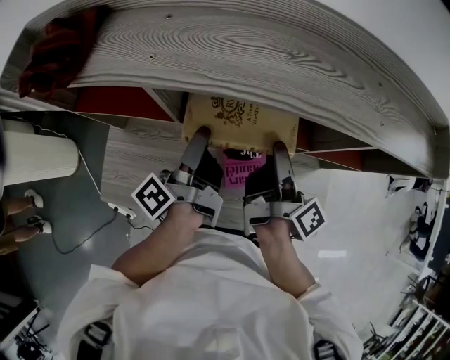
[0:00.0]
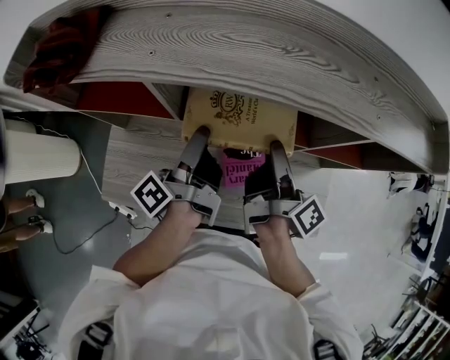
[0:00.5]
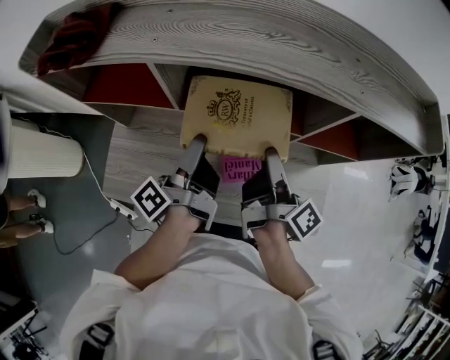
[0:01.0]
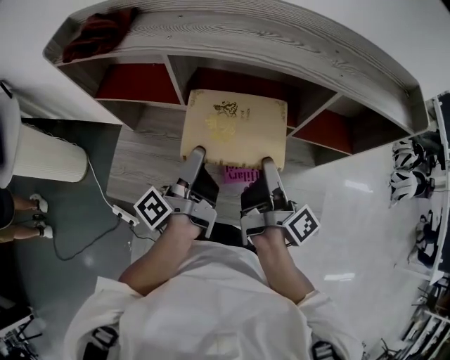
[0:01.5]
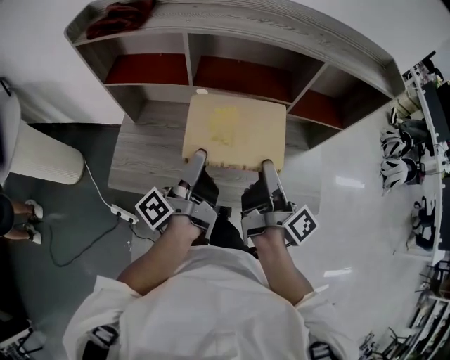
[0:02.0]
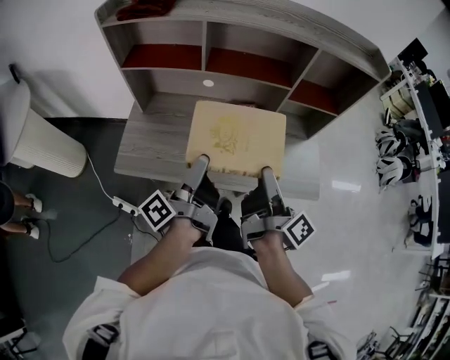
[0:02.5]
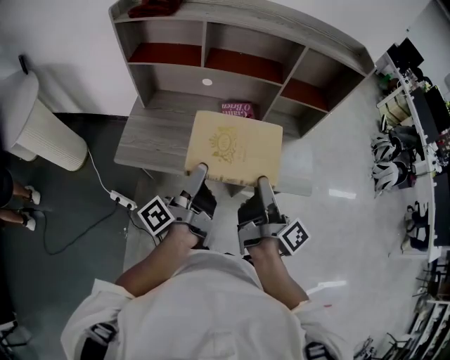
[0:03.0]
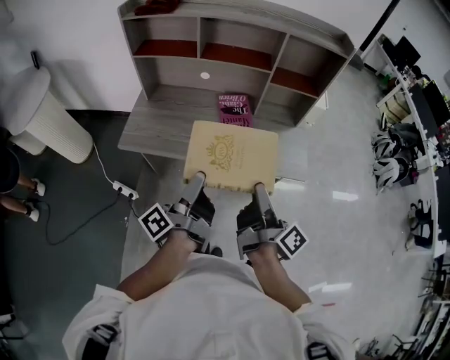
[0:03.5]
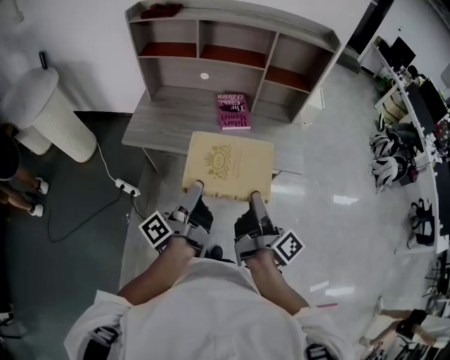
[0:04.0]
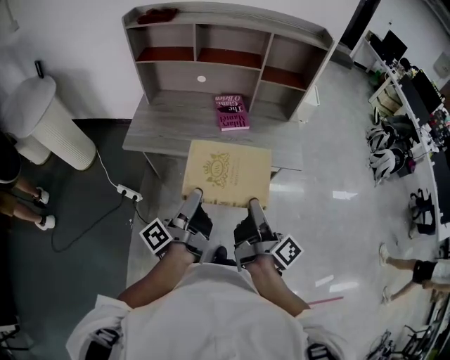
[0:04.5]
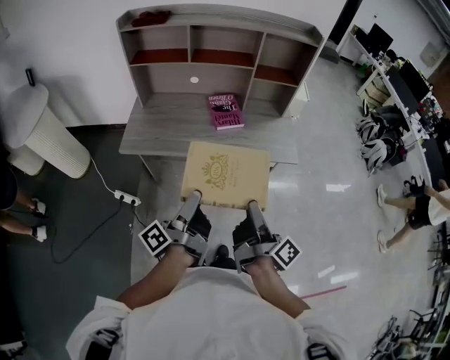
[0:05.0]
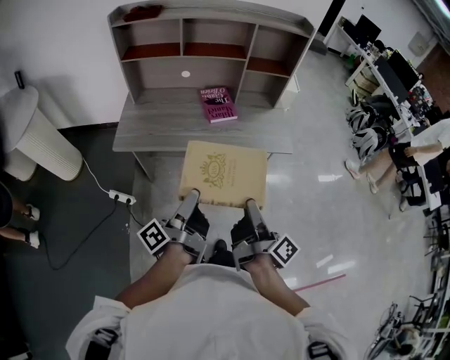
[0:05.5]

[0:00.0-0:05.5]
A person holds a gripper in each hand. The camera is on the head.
0:00.0 to 0:02.0: Both grippers move backward, about 20 cm.
0:02.0 to 0:03.5: The grippers both shift backward by about 30 cm.
0:03.5 to 0:05.5: The two grippers go some 15 cm backward.

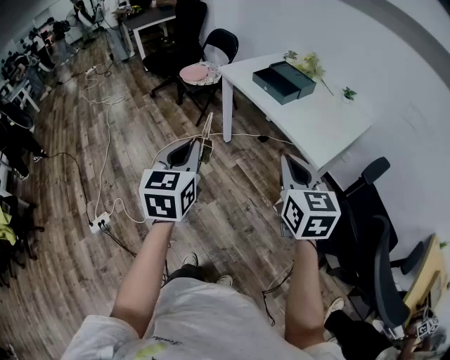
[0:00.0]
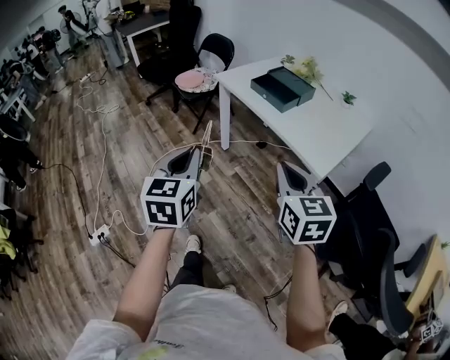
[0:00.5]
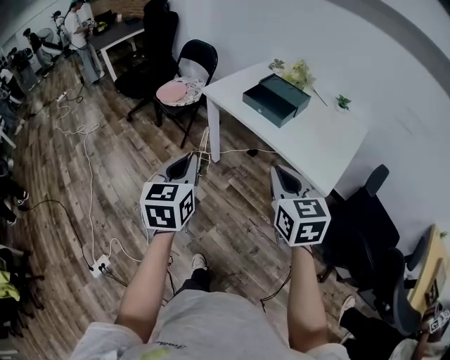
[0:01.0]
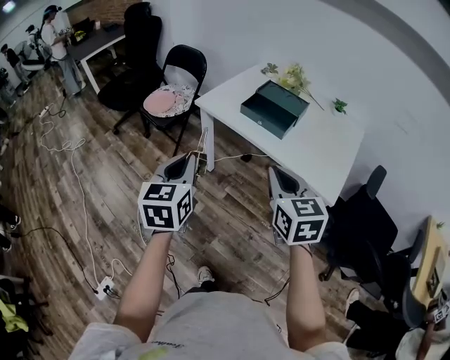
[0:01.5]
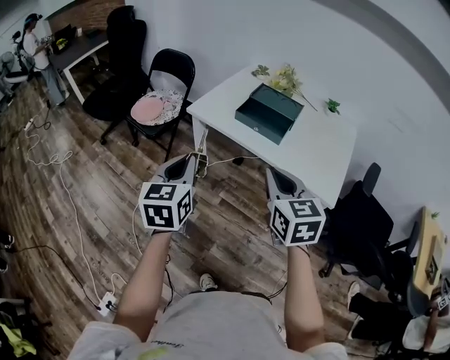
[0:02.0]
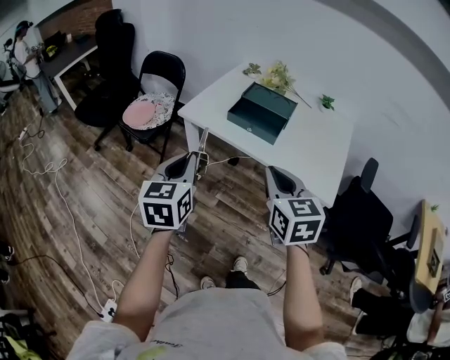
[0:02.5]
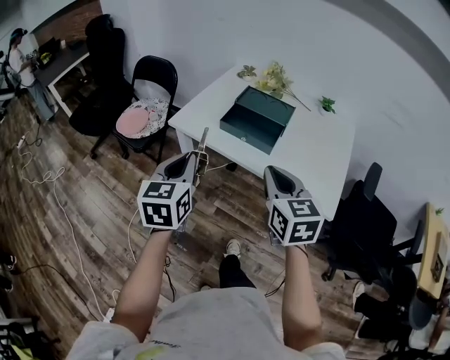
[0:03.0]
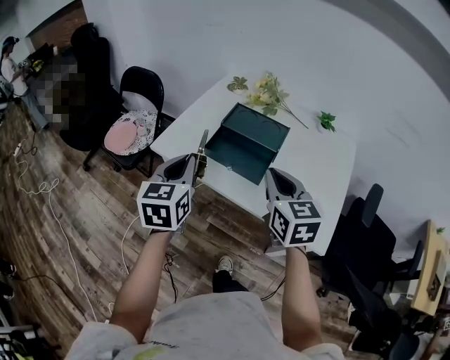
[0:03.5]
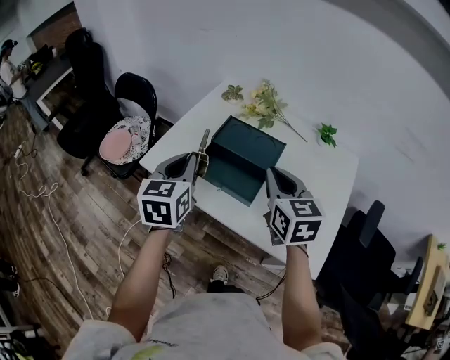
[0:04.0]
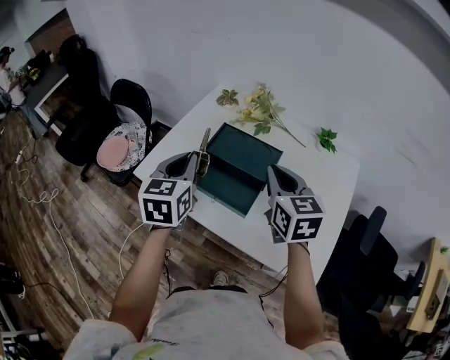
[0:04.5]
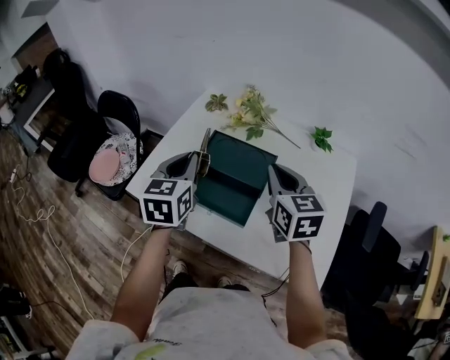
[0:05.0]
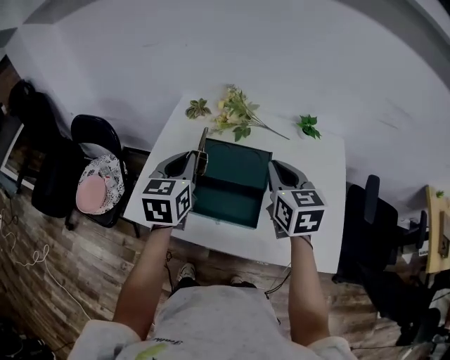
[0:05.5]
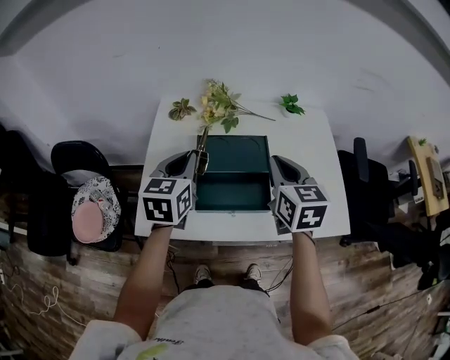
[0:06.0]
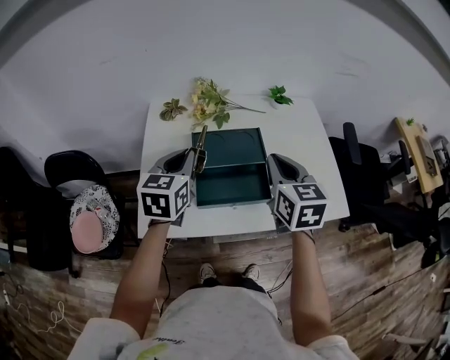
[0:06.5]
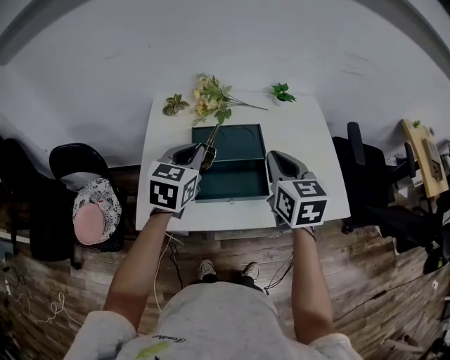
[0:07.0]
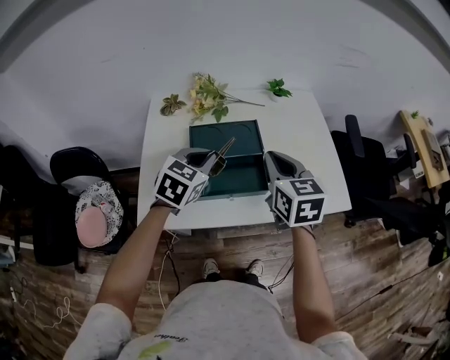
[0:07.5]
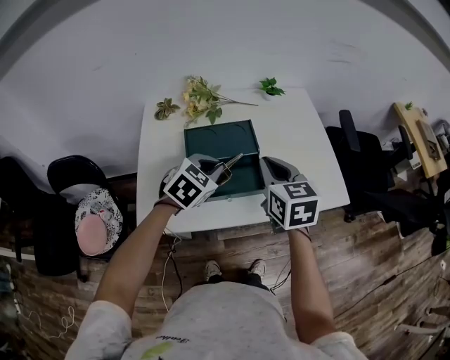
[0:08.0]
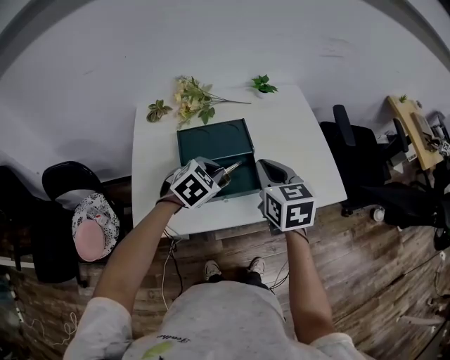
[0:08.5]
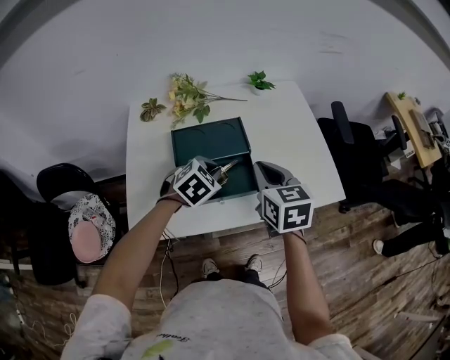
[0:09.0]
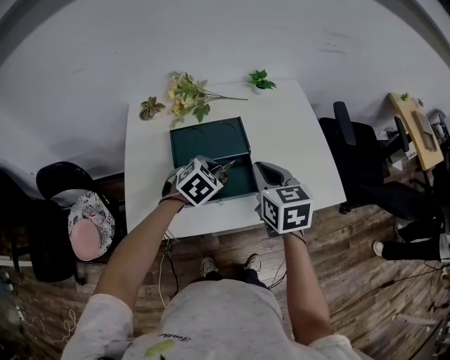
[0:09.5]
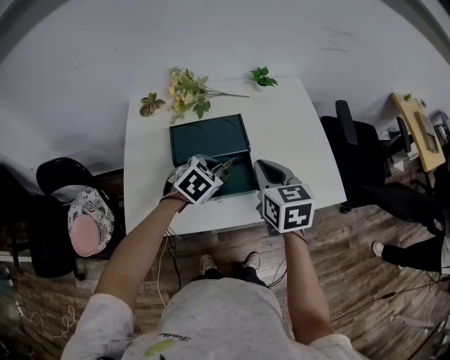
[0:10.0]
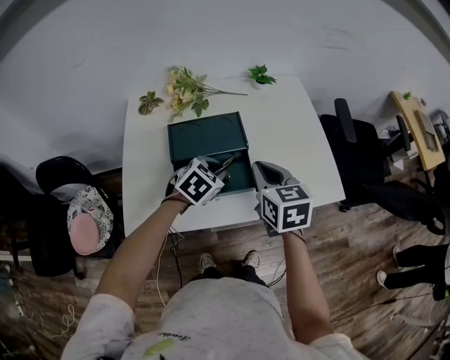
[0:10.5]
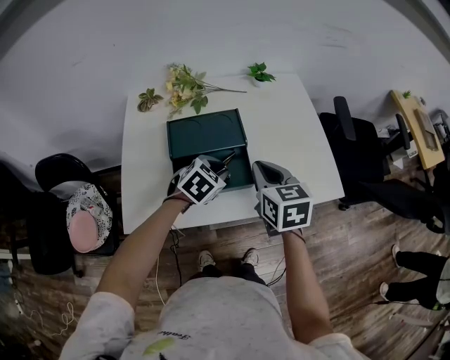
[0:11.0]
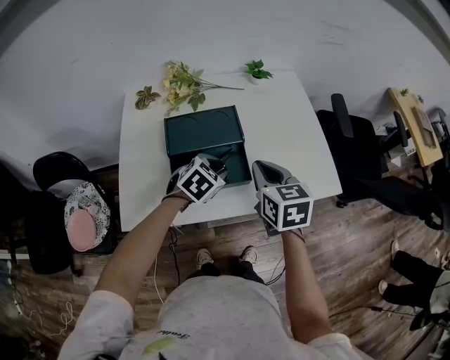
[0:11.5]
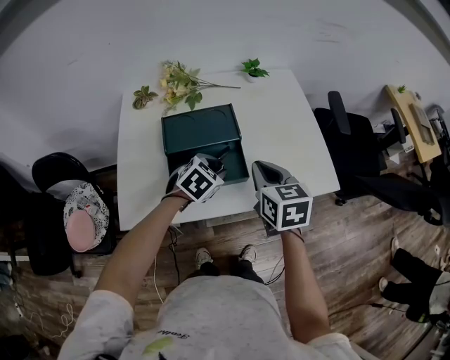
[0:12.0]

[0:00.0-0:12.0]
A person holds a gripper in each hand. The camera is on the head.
0:00.0 to 0:02.0: The right gripper shifts about 30 cm forward and to the left. The left gripper goes approximately 30 cm forward, and changes its angle by approximately 20 degrees.
0:02.0 to 0:04.0: The two grippers go approximately 35 cm forward and to the right.
0:04.0 to 0:06.0: The left gripper shifts by about 15 cm, and turns by about 30 degrees, while the right gripper rotates roughly 30 degrees.
0:06.0 to 0:08.0: The left gripper is displaced to the right and downward by some 15 cm, and rotates about 50 degrees, while the right gripper goes about 5 cm backward.
0:08.0 to 0:10.0: The left gripper shifts about 5 cm downward.
0:10.0 to 0:12.0: The left gripper opens.

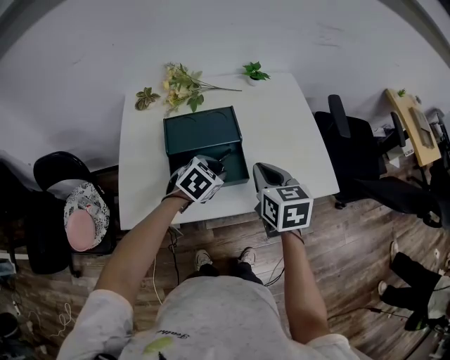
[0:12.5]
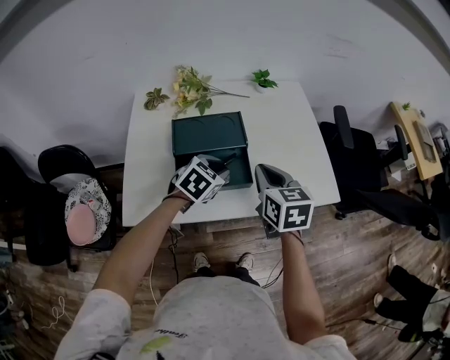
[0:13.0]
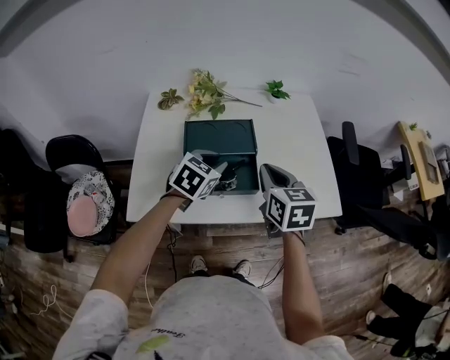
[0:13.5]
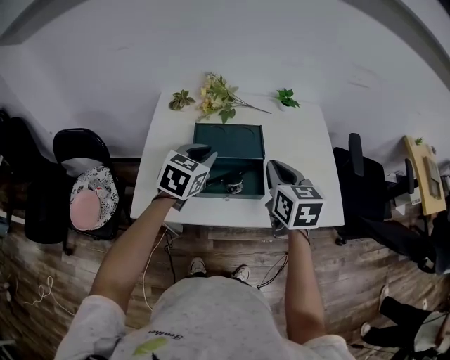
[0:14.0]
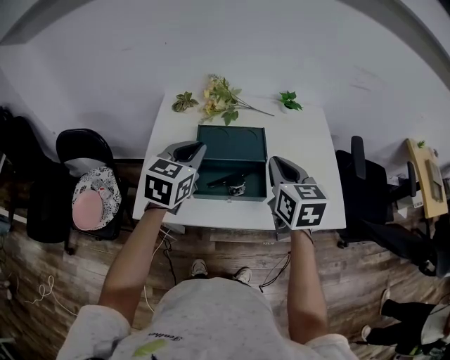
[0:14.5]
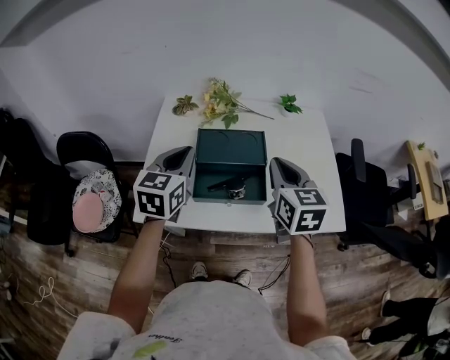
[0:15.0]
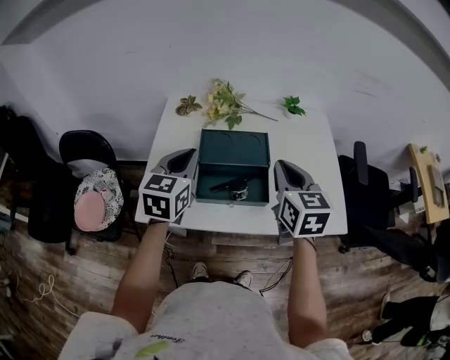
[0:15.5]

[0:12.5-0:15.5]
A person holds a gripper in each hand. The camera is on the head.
0:12.5 to 0:14.0: The left gripper shifts approximately 15 cm upward and to the left, and rotates approximately 30 degrees; the right gripper moves upward, some 5 cm.
0:14.0 to 0:15.5: The left gripper heads to the left and upward, covering some 10 cm, and swivels roughly 20 degrees.

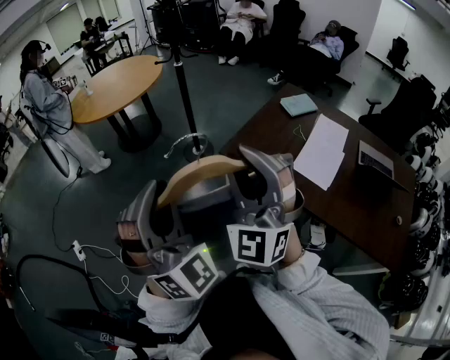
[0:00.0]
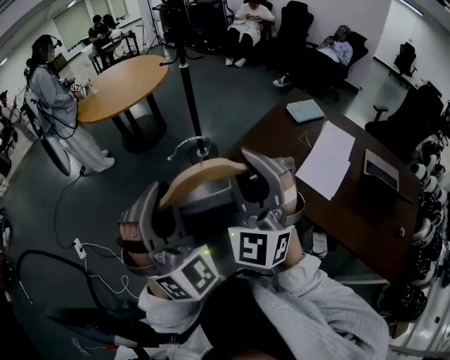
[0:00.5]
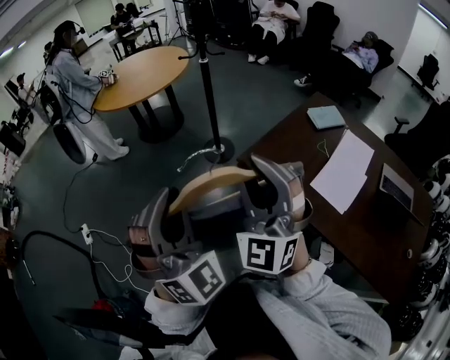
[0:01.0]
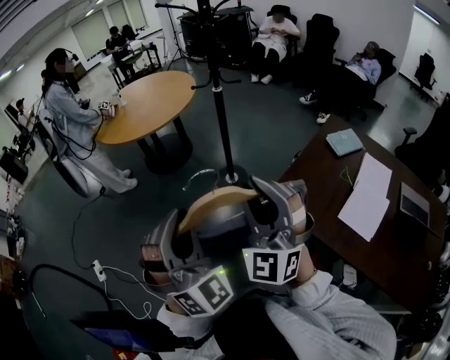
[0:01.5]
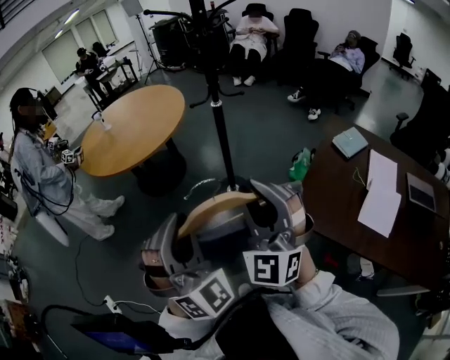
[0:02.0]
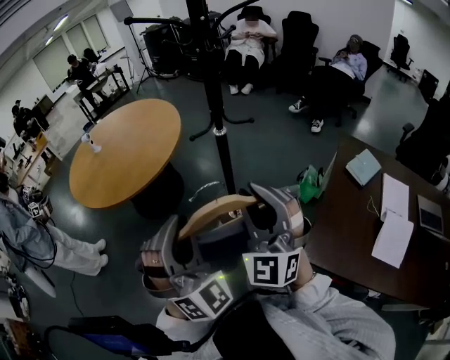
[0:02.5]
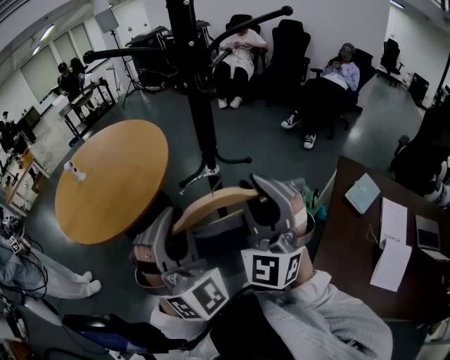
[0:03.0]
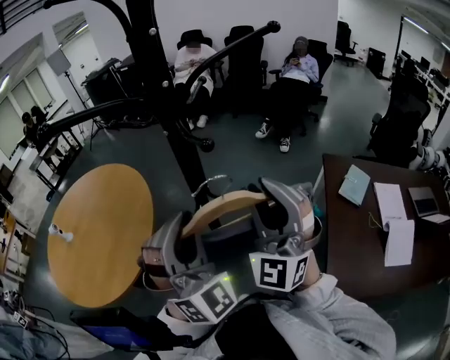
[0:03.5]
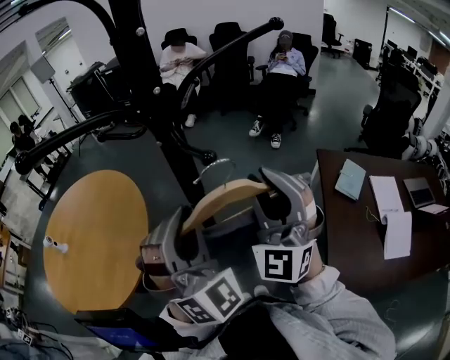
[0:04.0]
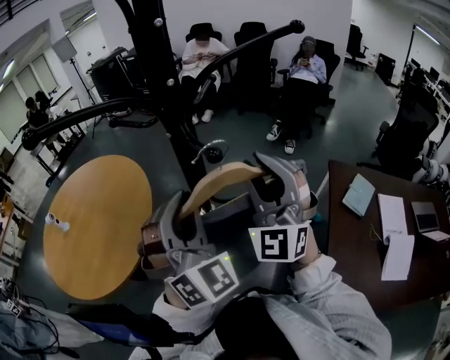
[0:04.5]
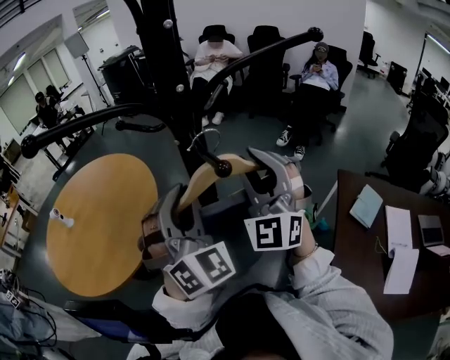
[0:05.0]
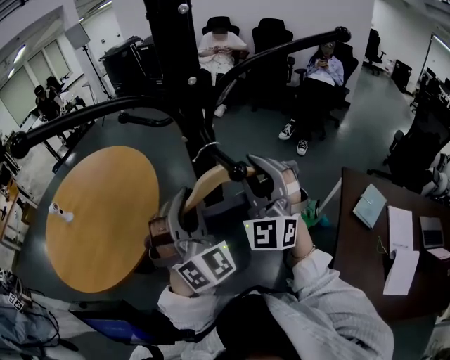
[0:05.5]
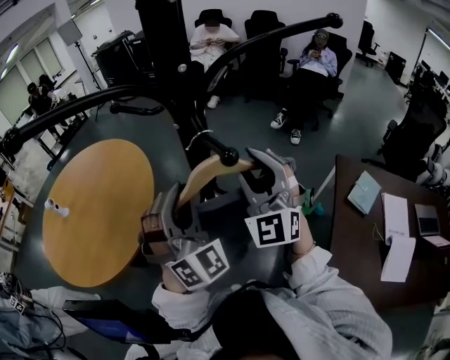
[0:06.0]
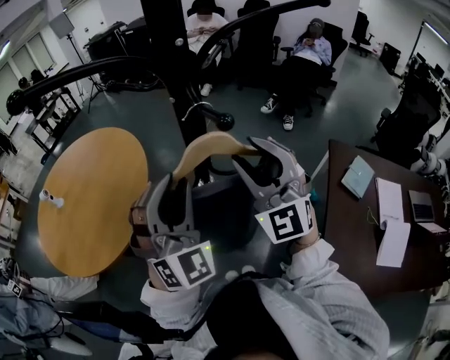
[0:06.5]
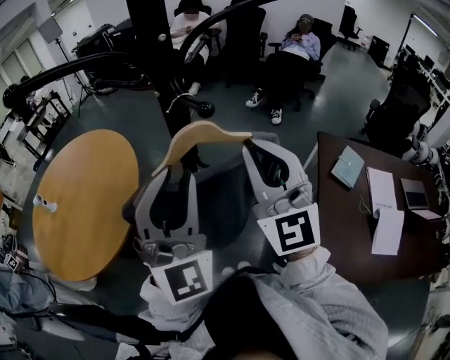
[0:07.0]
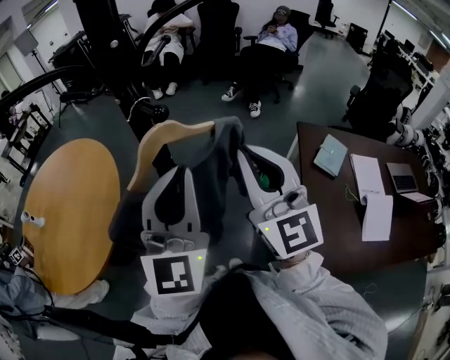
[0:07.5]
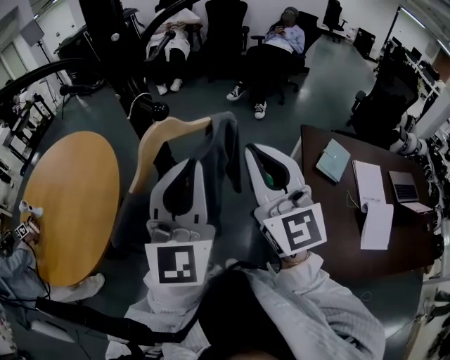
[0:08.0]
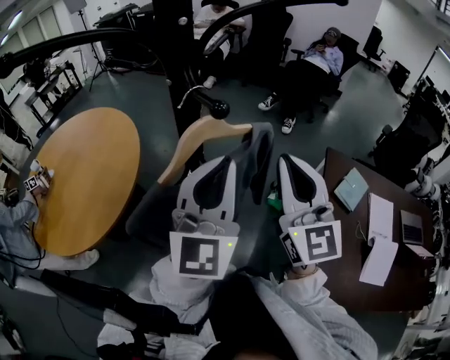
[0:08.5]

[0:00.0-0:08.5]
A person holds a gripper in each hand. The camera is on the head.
0:00.0 to 0:02.0: Both grippers move forward and to the left, about 40 cm.
0:02.0 to 0:04.0: Both grippers are carried some 50 cm. The left gripper rotates about 30 degrees, while the right gripper turns by about 30 degrees.
0:04.0 to 0:06.5: The right gripper goes forward and returns, approximately 15 cm each way, and turns by roughly 30 degrees. Meanwhile the left gripper reaches some 10 cm forward, then returns.
0:06.5 to 0:08.5: The two grippers go some 10 cm to the right. The left gripper twists some 40 degrees counterclockwise, seen from behind, and closes its fingers. The right gripper rotates about 30 degrees, and closes its fingers.
